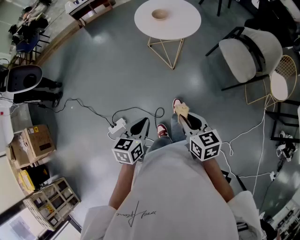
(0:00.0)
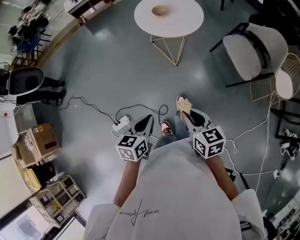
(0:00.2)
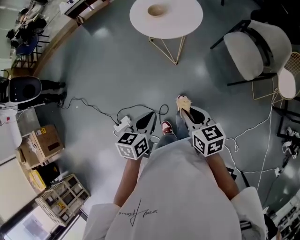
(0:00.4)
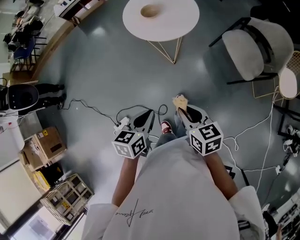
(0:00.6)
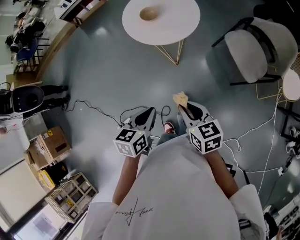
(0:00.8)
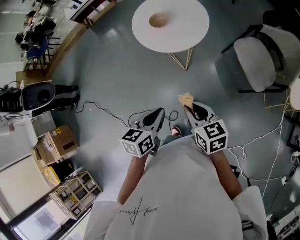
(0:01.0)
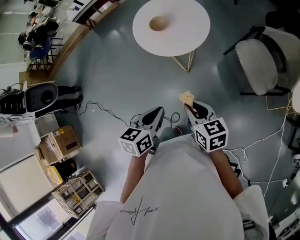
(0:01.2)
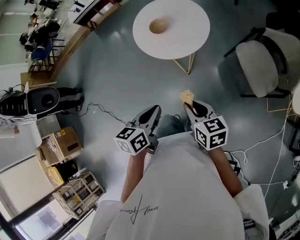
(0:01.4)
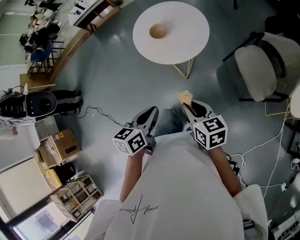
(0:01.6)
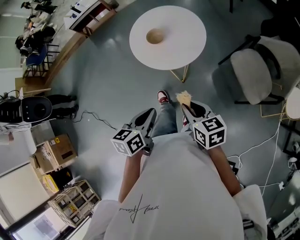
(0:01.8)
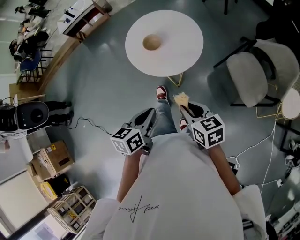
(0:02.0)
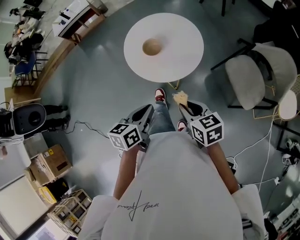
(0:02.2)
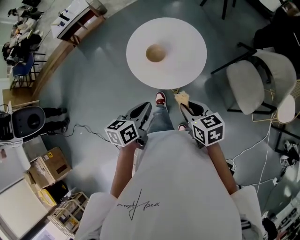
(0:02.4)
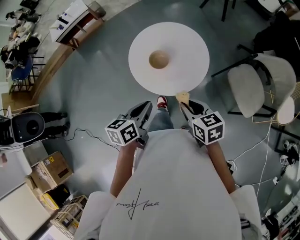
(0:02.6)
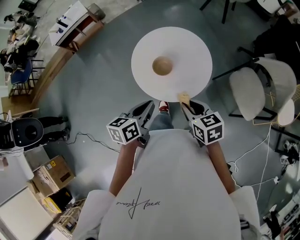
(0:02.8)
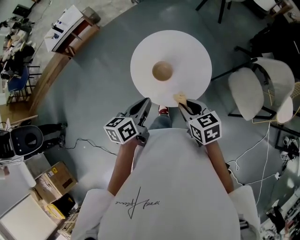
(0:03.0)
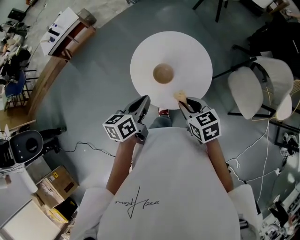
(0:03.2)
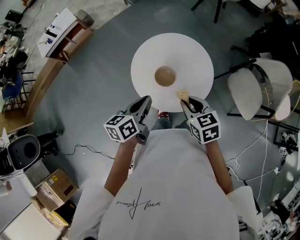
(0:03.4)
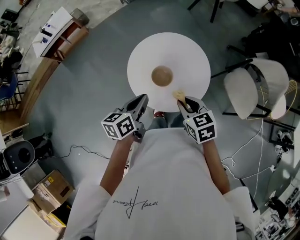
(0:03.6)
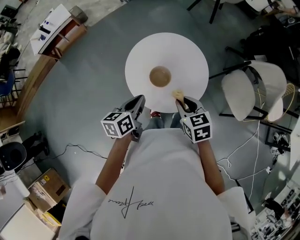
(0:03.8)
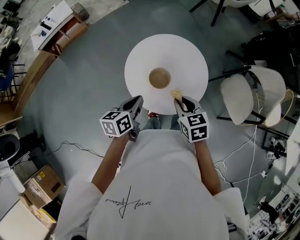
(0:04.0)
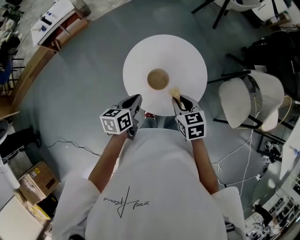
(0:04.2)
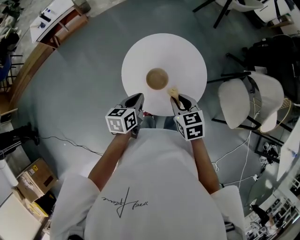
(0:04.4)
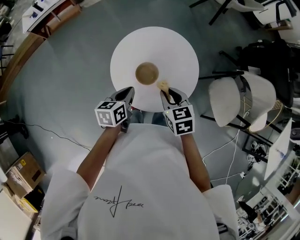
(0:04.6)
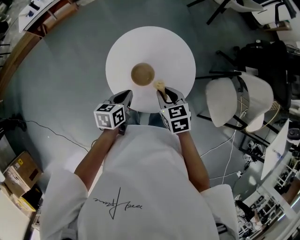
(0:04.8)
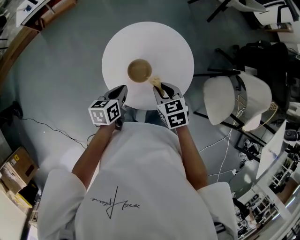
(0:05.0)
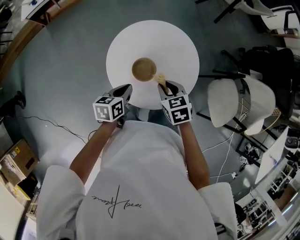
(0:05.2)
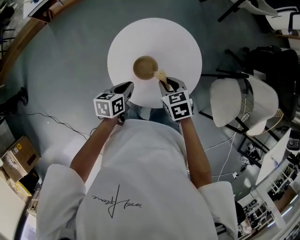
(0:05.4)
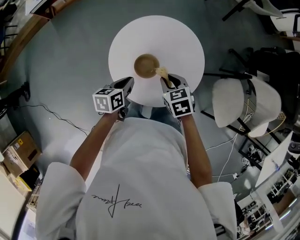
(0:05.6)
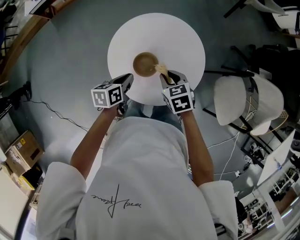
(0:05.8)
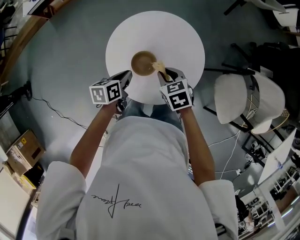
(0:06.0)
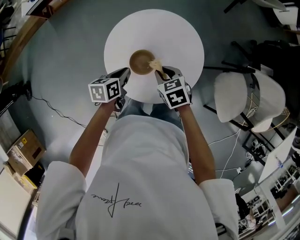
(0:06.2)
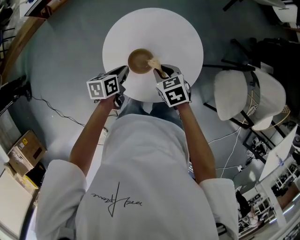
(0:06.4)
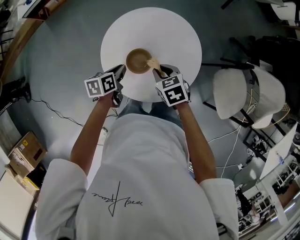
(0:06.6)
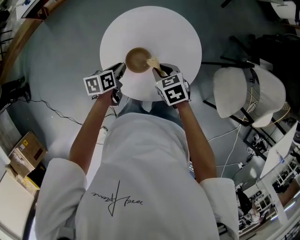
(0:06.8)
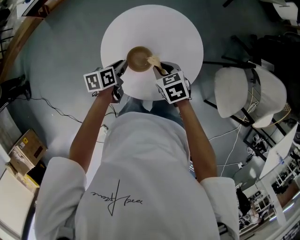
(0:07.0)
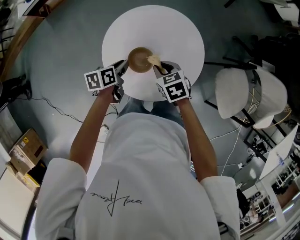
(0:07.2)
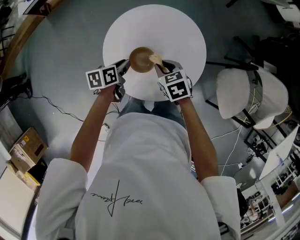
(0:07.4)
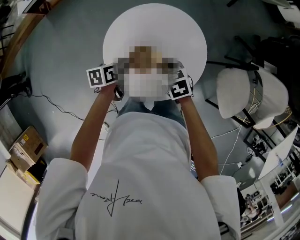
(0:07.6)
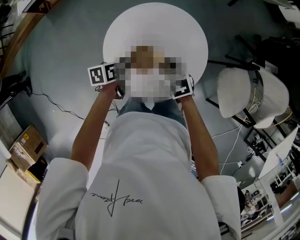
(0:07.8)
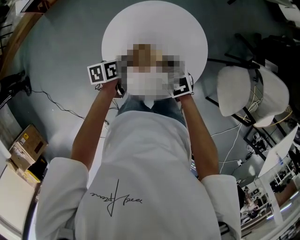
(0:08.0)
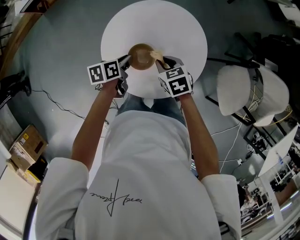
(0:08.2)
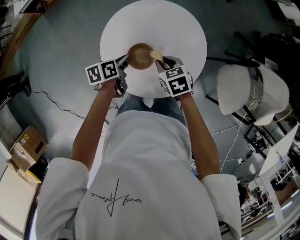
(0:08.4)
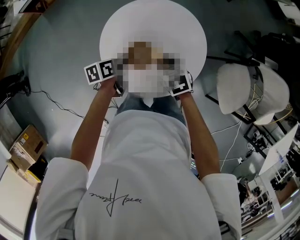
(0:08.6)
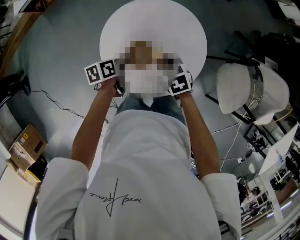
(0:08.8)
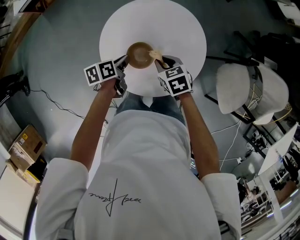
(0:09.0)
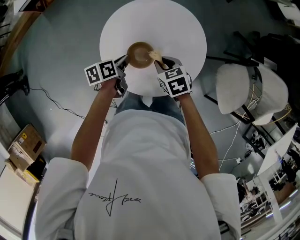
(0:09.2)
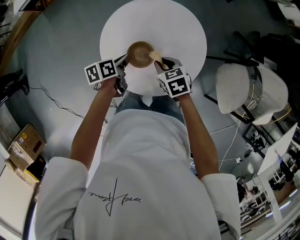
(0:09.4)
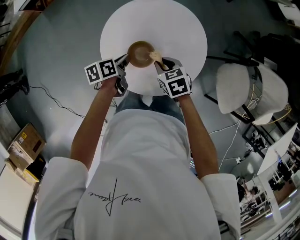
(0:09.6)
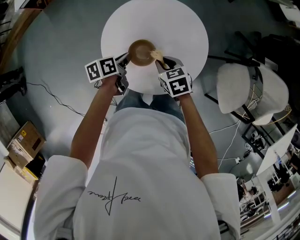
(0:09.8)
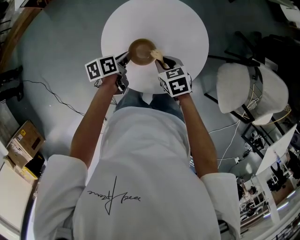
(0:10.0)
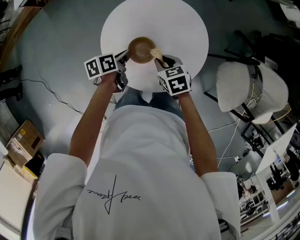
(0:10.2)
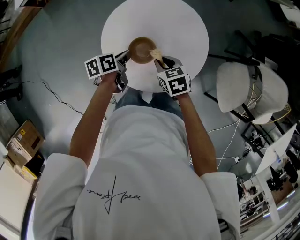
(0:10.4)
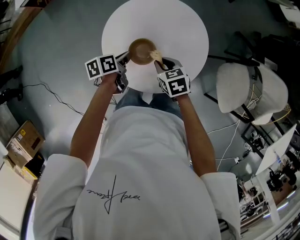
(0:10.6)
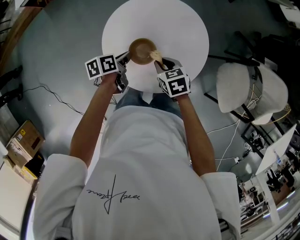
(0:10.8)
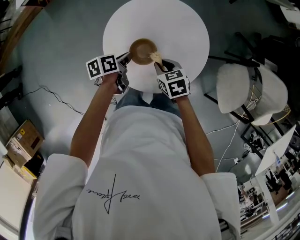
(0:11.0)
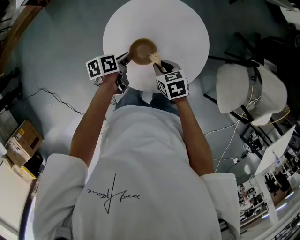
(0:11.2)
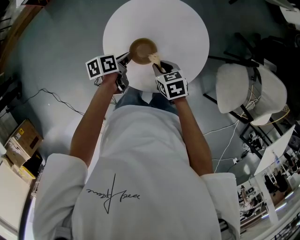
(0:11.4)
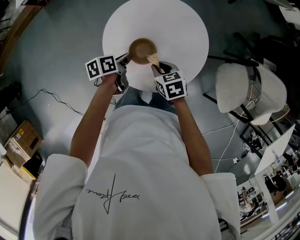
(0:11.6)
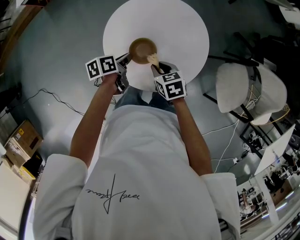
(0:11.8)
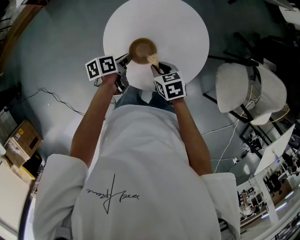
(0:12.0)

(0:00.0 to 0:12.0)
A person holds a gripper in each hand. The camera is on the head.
0:00.0 - 0:01.6: The right gripper ends up some 30 cm from where it was.
0:01.6 - 0:03.0: The right gripper shifts by about 25 cm.
0:03.0 - 0:04.4: The right gripper ends up roughly 10 cm from where it was.
0:04.4 - 0:06.0: The right gripper goes approximately 10 cm downward.

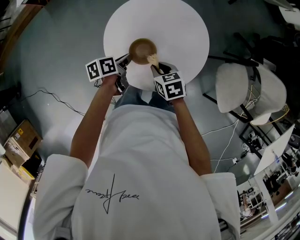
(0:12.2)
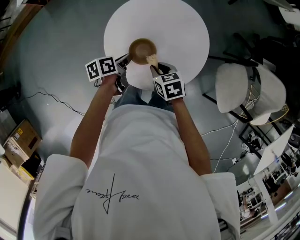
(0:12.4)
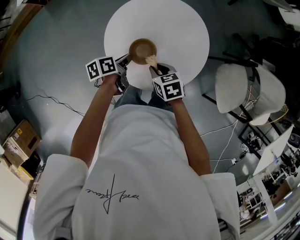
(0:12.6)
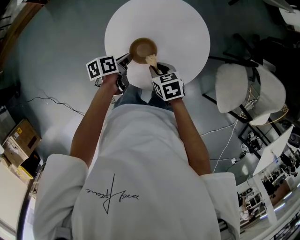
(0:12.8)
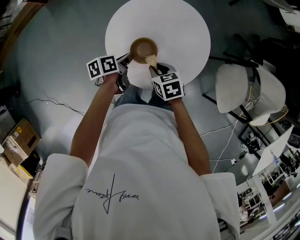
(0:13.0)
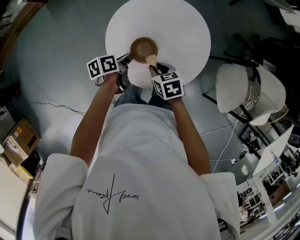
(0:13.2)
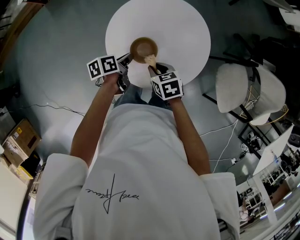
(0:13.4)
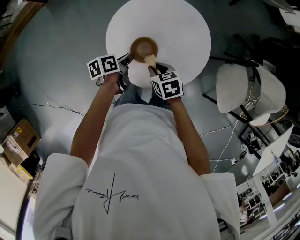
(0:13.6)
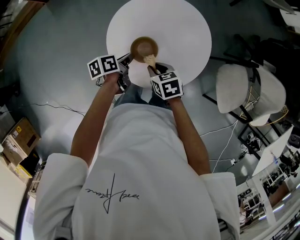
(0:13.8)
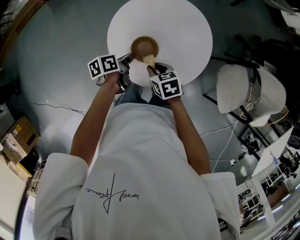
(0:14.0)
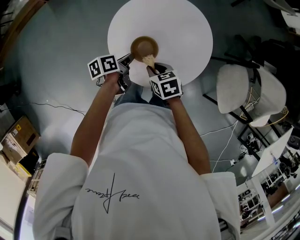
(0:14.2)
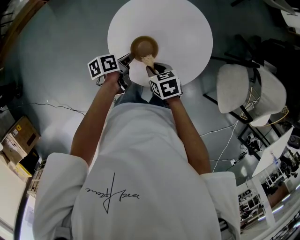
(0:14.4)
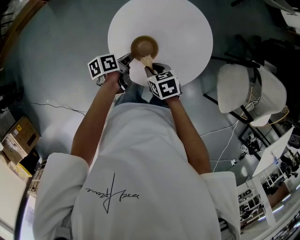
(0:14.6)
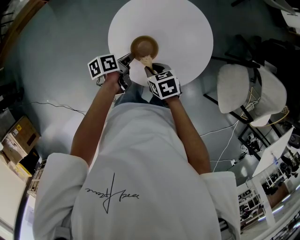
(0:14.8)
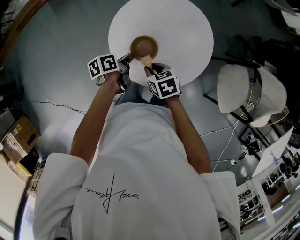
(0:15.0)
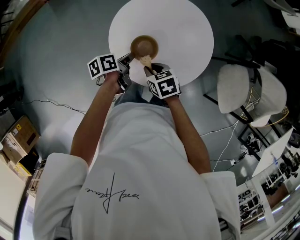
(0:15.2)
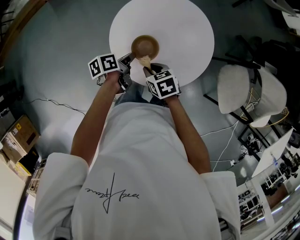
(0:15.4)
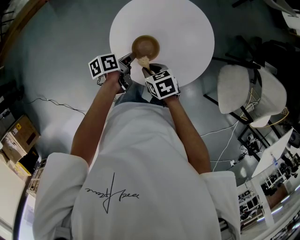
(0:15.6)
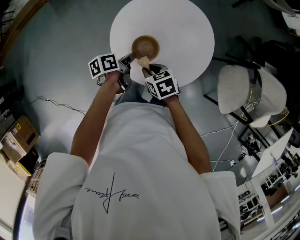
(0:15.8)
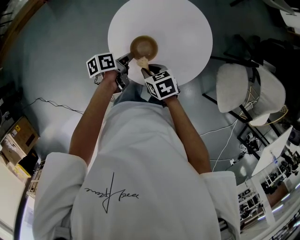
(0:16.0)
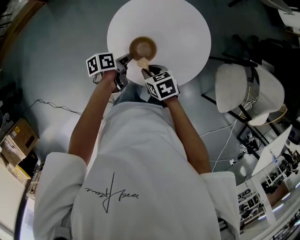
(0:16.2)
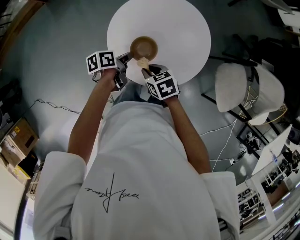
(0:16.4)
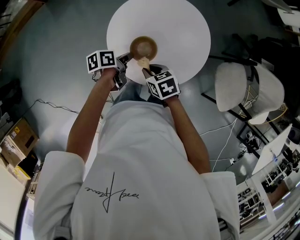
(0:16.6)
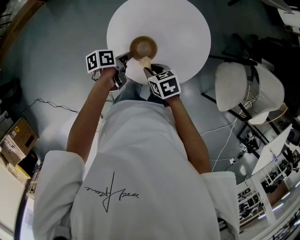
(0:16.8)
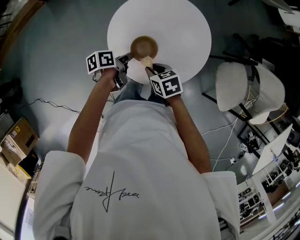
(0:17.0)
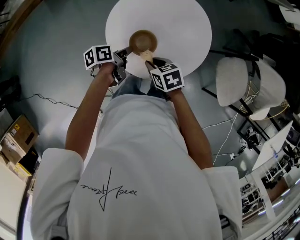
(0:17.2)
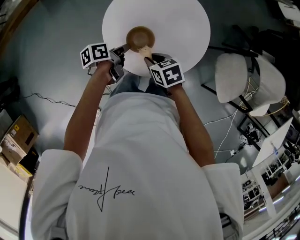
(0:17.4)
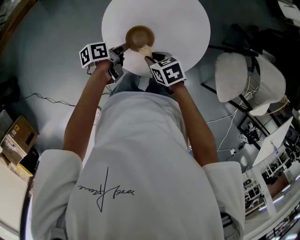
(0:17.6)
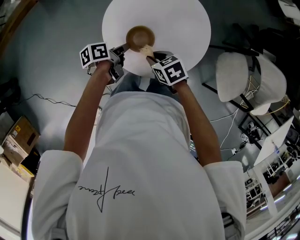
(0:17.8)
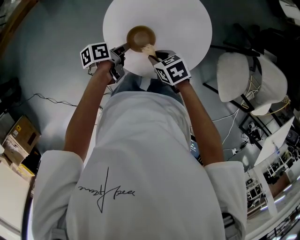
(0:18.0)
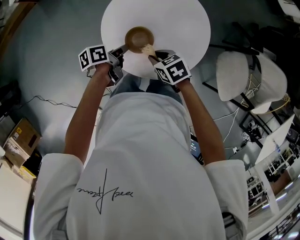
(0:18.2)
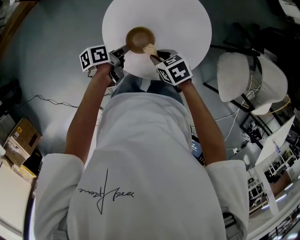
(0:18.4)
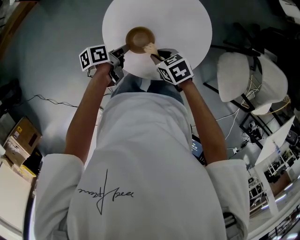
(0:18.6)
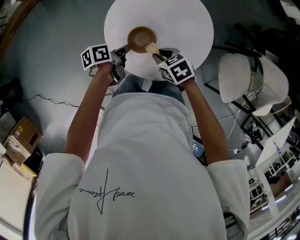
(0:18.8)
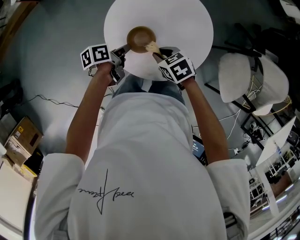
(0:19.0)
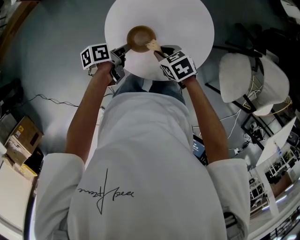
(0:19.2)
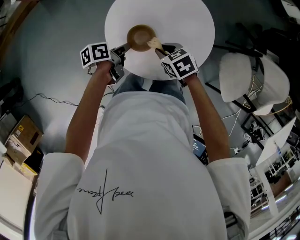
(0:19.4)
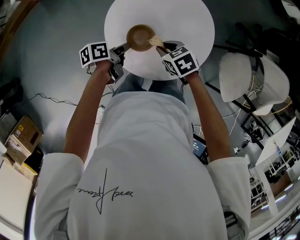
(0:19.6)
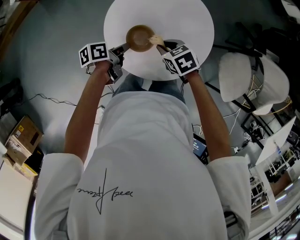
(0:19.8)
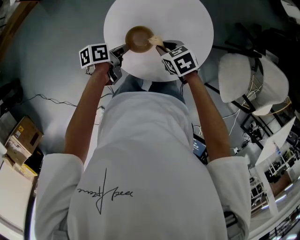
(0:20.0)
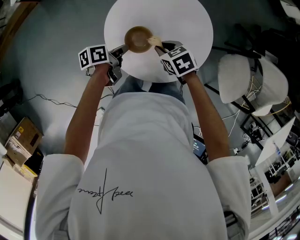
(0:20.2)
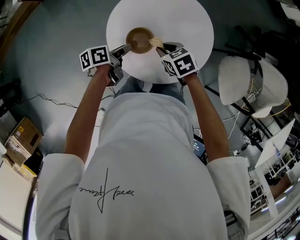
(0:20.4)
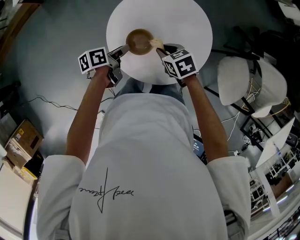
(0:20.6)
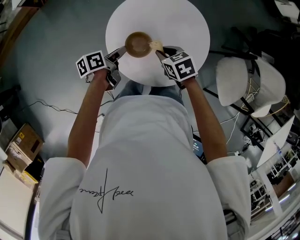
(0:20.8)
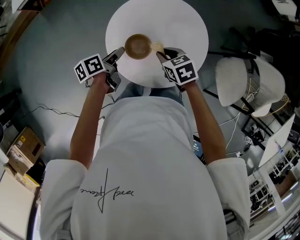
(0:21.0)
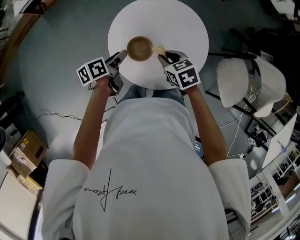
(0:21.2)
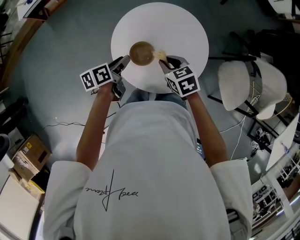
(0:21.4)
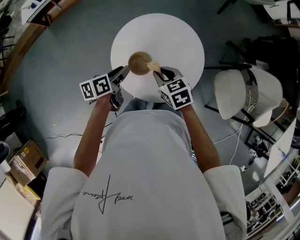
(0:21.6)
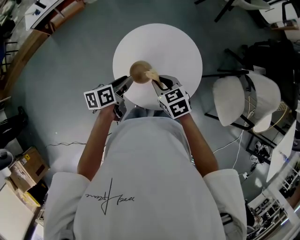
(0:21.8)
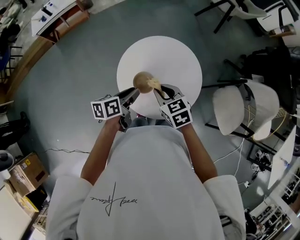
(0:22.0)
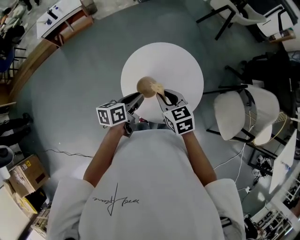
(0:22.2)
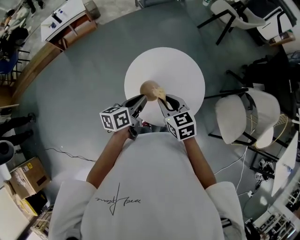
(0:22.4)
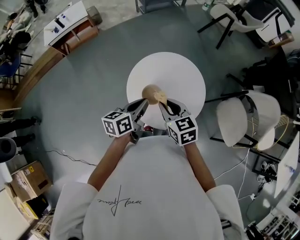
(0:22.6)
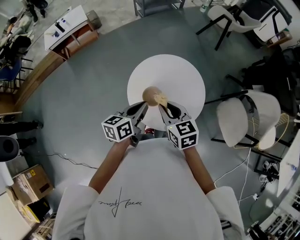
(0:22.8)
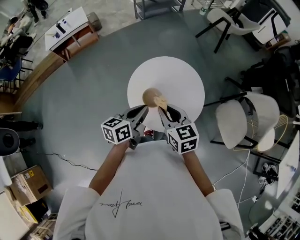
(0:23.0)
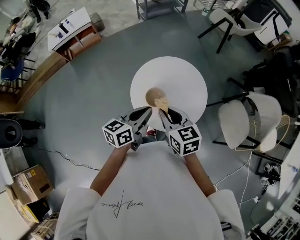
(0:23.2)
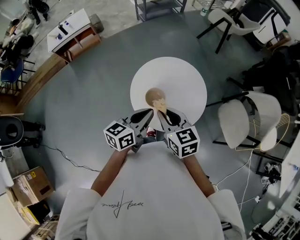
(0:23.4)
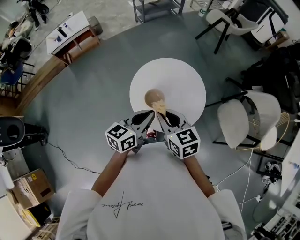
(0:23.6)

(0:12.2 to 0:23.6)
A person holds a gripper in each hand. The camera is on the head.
0:20.8 - 0:22.2: The right gripper is displaced upward by approximately 15 cm, and changes its angle by some 20 degrees.
0:22.2 - 0:23.6: The right gripper goes approximately 10 cm upward.

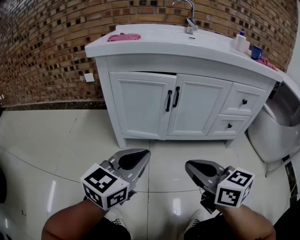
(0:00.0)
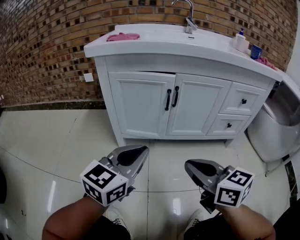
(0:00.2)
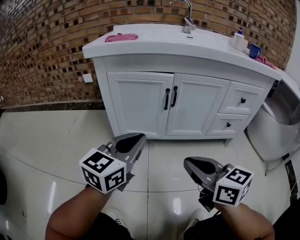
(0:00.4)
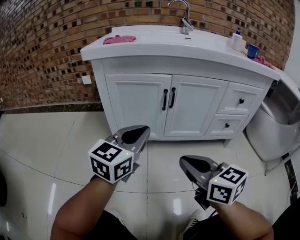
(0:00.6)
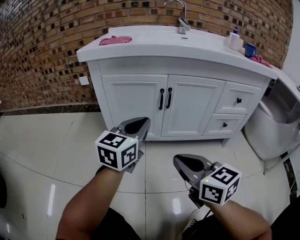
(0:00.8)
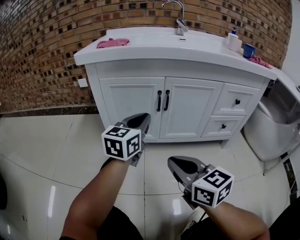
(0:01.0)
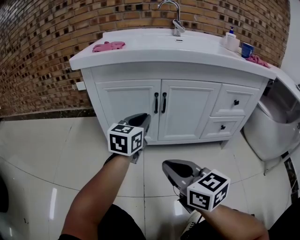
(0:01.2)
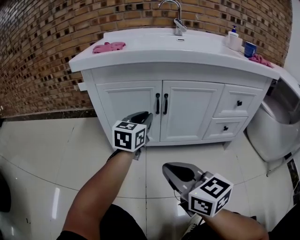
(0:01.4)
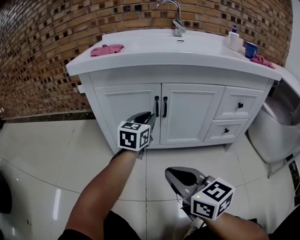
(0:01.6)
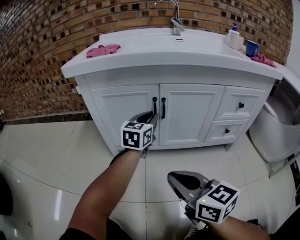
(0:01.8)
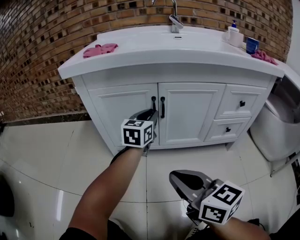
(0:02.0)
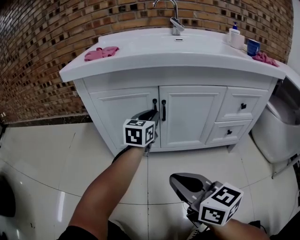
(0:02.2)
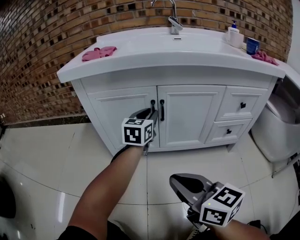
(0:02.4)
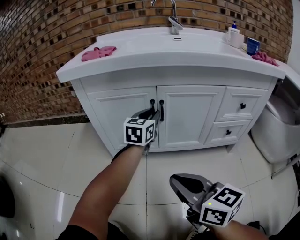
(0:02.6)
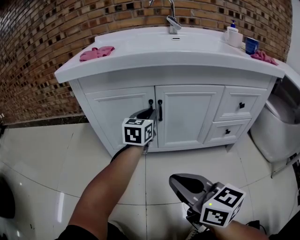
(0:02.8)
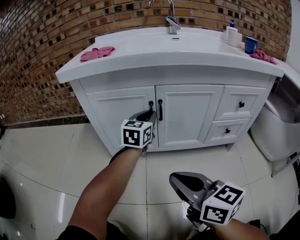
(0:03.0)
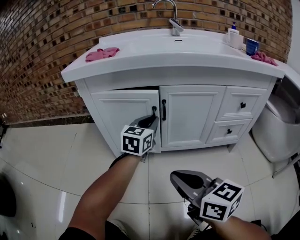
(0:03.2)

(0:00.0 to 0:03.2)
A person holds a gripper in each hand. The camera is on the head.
0:00.0 - 0:01.6: The left gripper goes about 25 cm forward.
